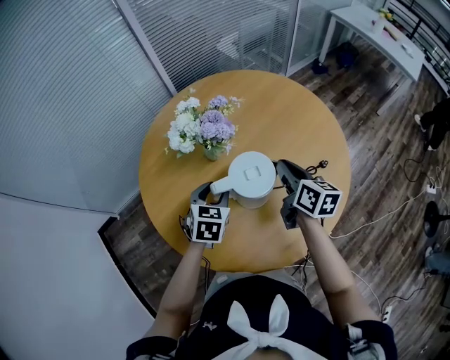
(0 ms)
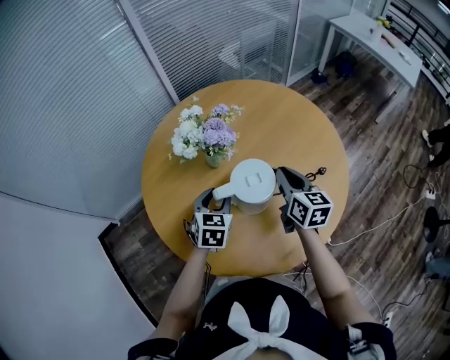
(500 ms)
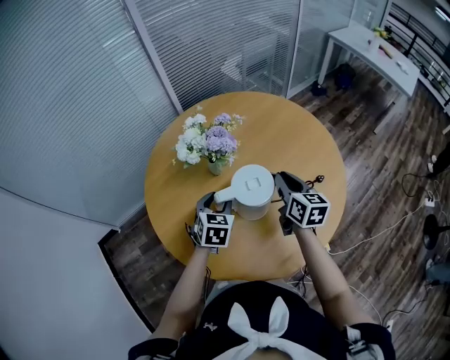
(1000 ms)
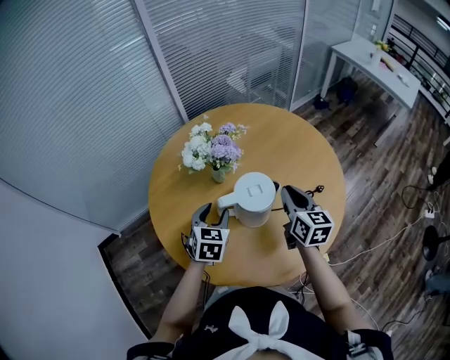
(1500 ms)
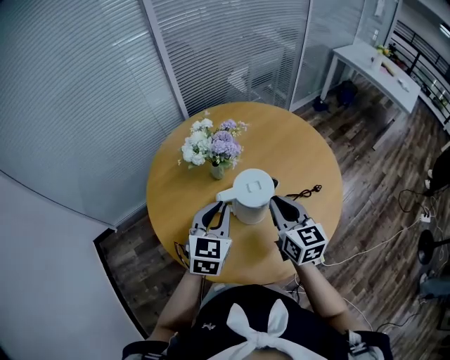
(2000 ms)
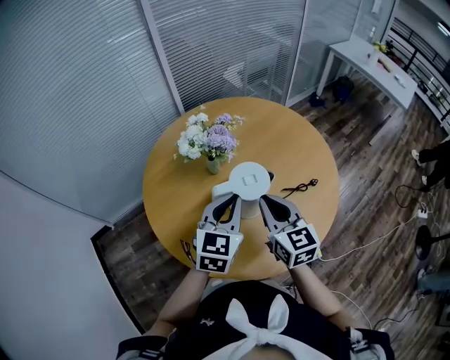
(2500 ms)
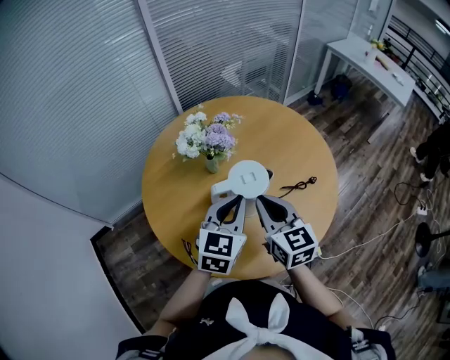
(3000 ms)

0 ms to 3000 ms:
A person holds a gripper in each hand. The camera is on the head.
0 ms to 1500 ms: The grippers move only a little.
1500 ms to 3000 ms: The left gripper moves upward, to the right and backward, about 15 cm, rotates roughly 20 degrees, and closes. The right gripper moves to the left, backward and upward, about 15 cm.

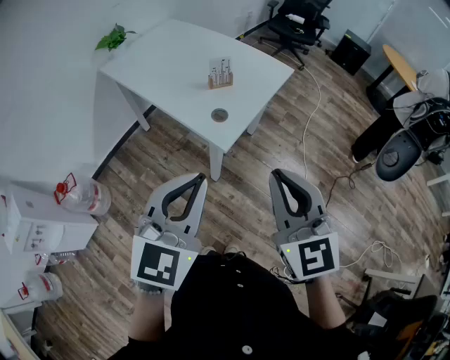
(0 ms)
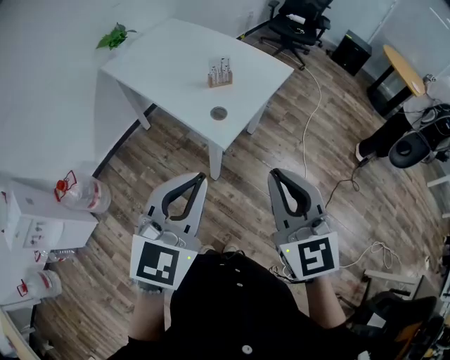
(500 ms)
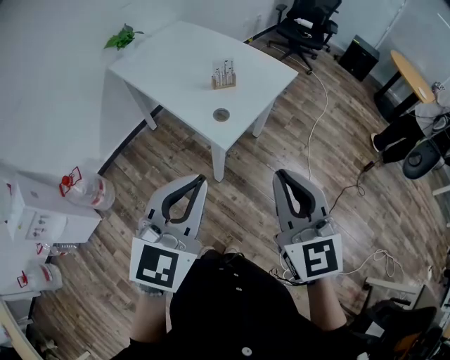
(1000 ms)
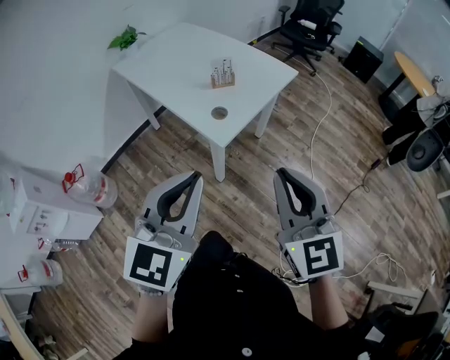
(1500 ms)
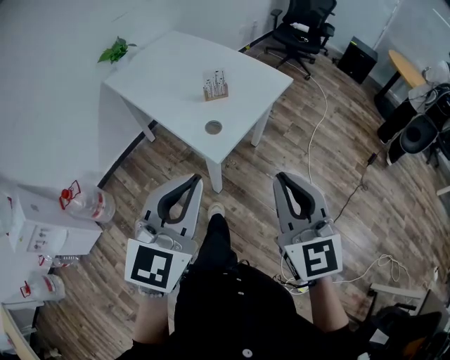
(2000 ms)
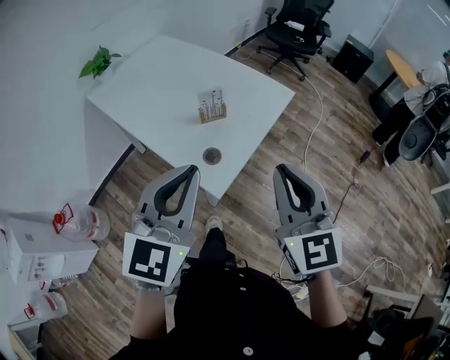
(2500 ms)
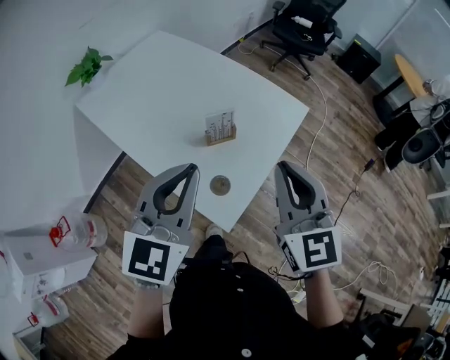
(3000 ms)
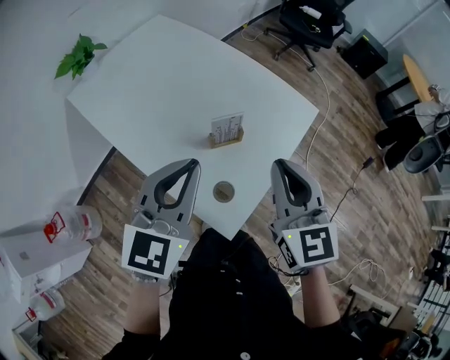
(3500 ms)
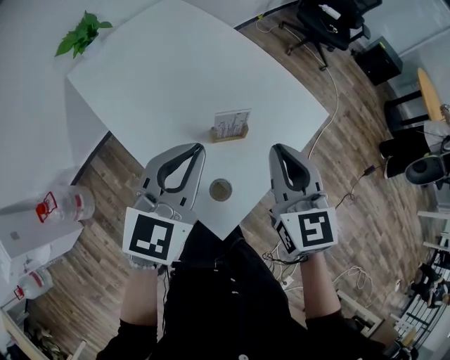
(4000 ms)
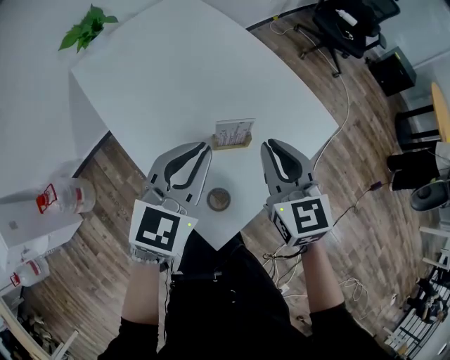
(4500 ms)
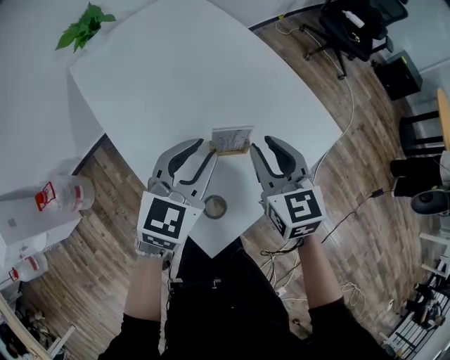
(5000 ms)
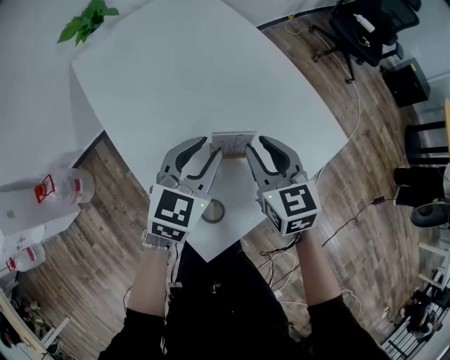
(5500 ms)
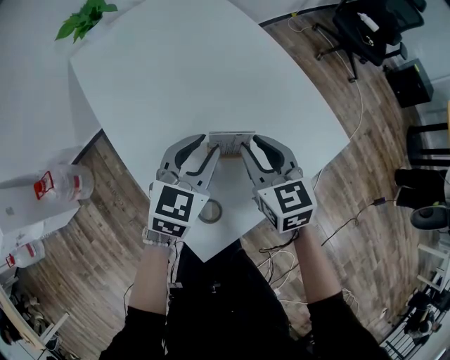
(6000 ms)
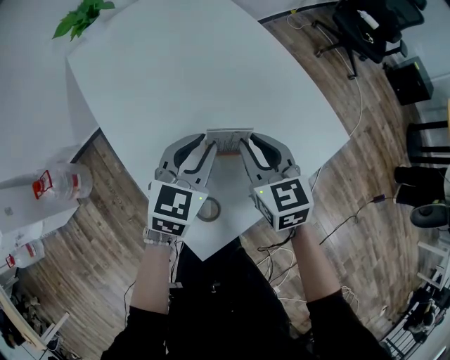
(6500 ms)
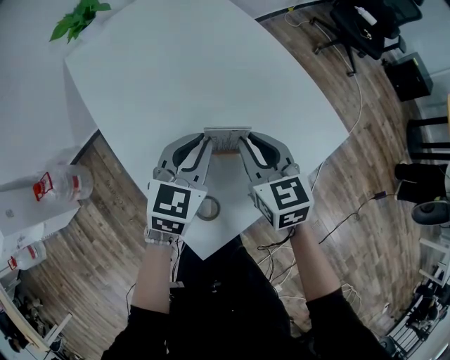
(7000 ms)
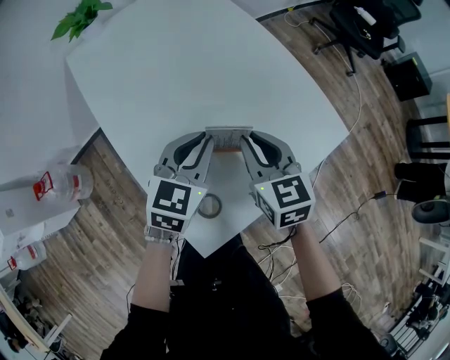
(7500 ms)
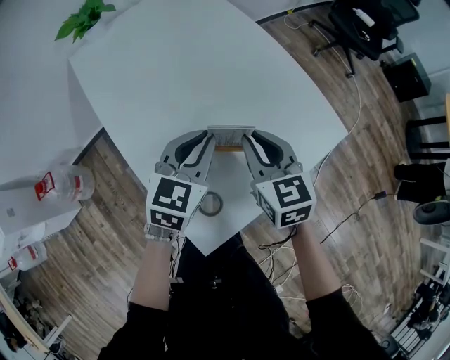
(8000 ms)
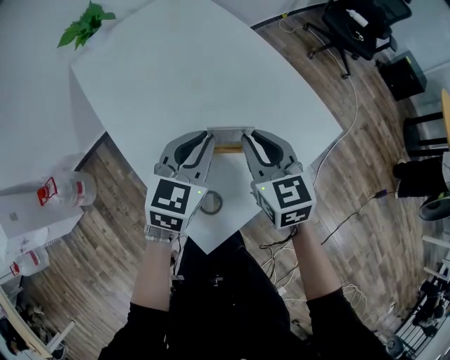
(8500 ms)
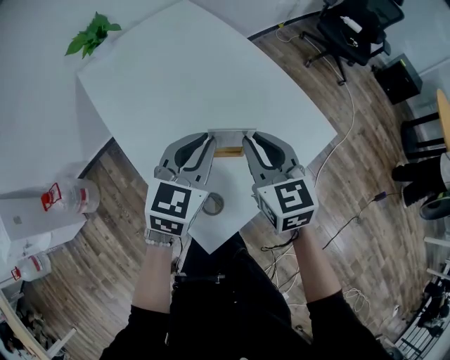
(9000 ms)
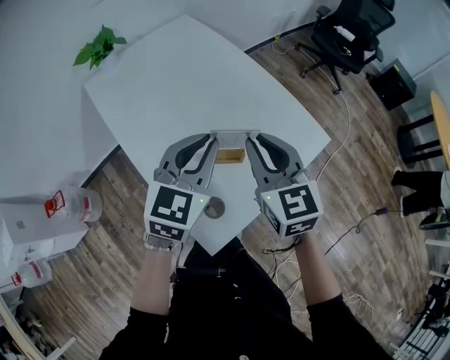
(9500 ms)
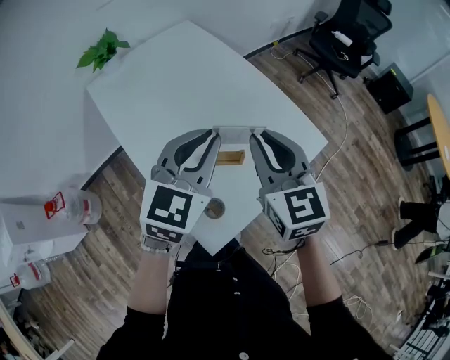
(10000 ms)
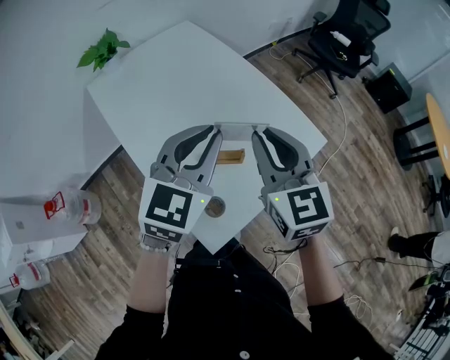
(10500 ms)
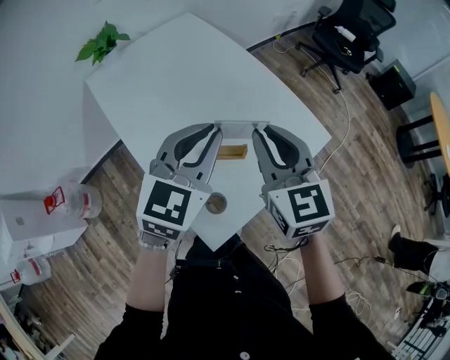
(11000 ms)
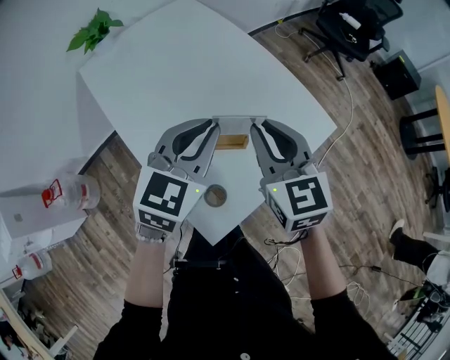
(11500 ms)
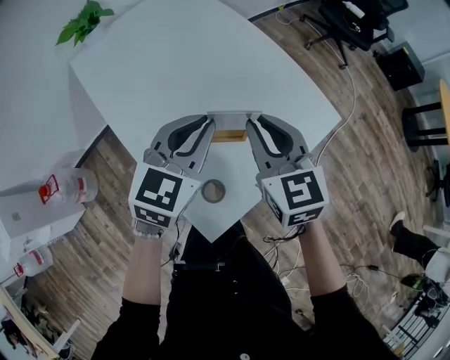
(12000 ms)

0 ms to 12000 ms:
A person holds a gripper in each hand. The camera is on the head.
0 ms to 2000 ms: The left gripper shifts by about 5 cm. The right gripper is displaced to the right by approximately 5 cm.
2000 ms to 4000 ms: The pair of grippers is taken forward, about 40 cm.
4000 ms to 6000 ms: Both grippers travel together downward and forward, some 20 cm. The left gripper opens. The right gripper changes its angle by roughly 20 degrees, and opens.
6000 ms to 8000 ms: The two grippers keep their place.
8000 ms to 10000 ms: Both grippers move upward, roughly 15 cm.
10000 ms to 12000 ms: Both grippers travel together downward, about 10 cm.

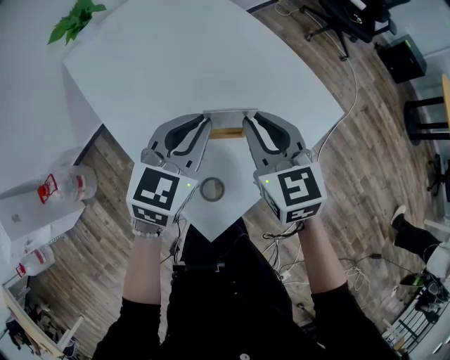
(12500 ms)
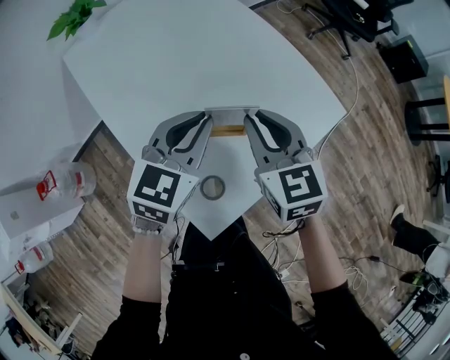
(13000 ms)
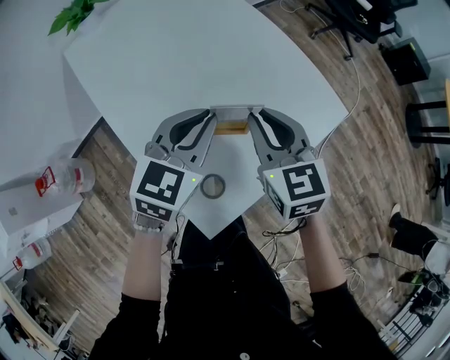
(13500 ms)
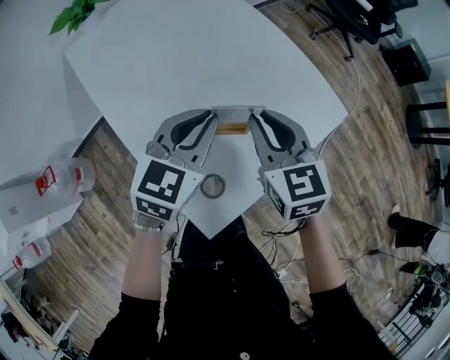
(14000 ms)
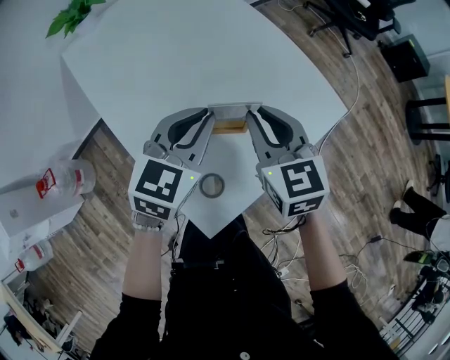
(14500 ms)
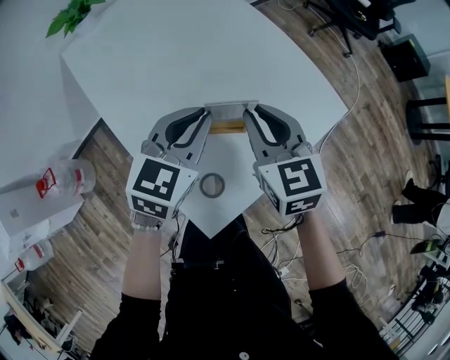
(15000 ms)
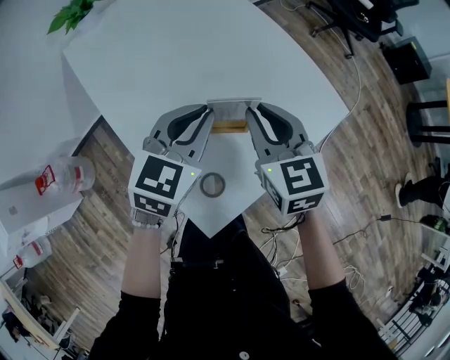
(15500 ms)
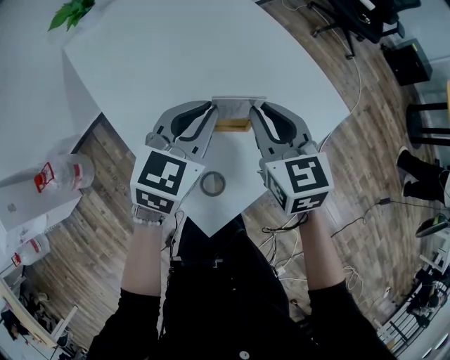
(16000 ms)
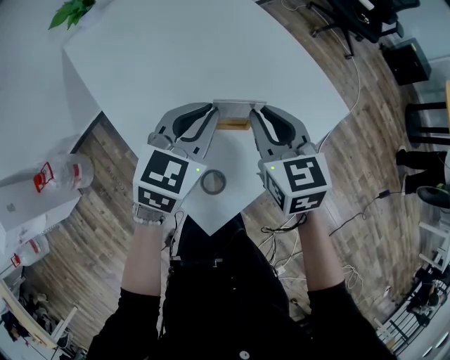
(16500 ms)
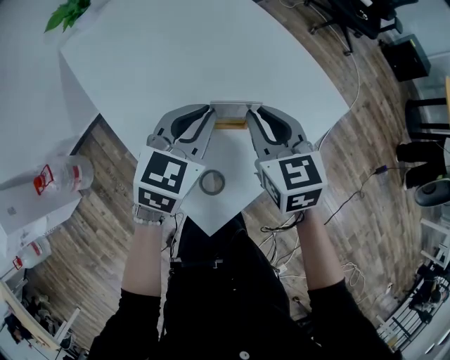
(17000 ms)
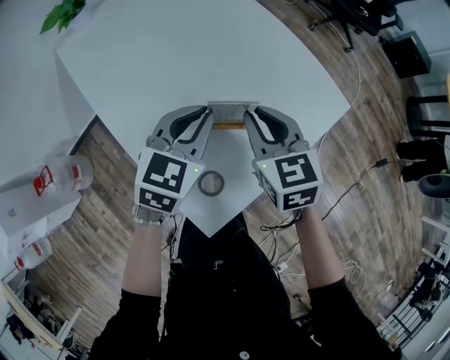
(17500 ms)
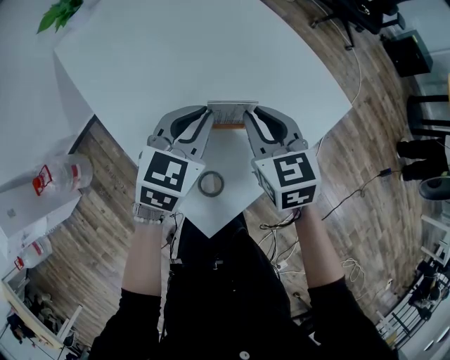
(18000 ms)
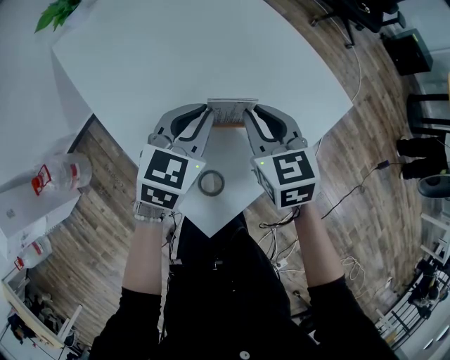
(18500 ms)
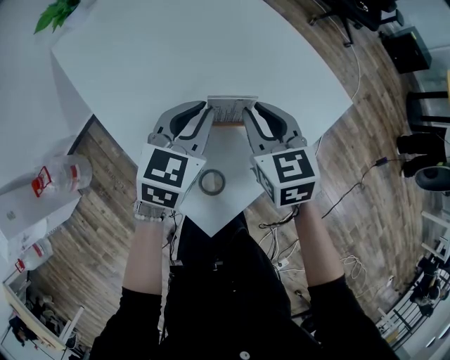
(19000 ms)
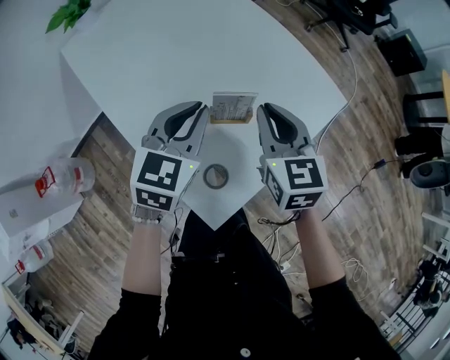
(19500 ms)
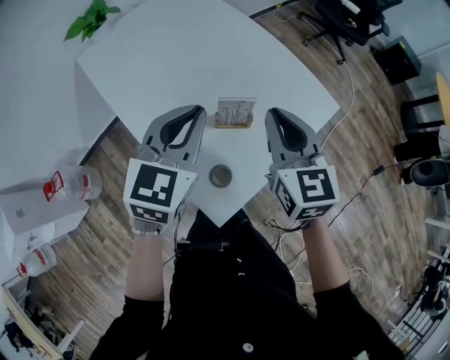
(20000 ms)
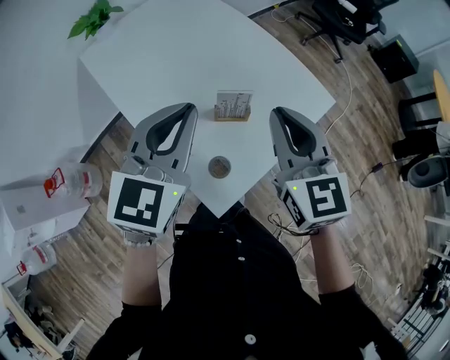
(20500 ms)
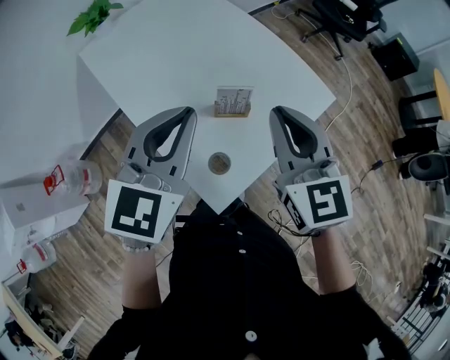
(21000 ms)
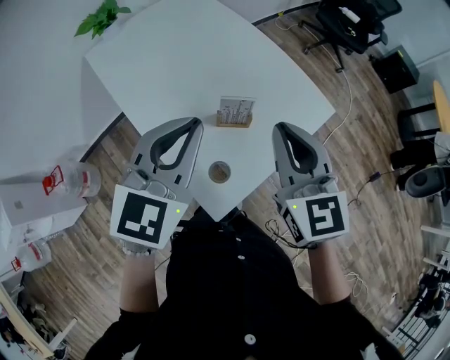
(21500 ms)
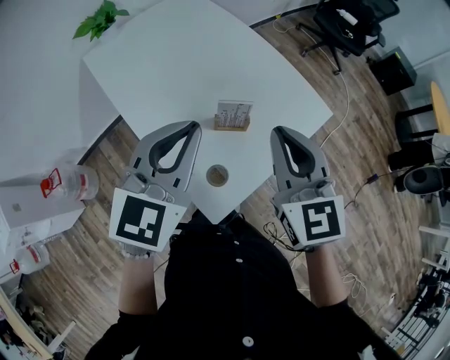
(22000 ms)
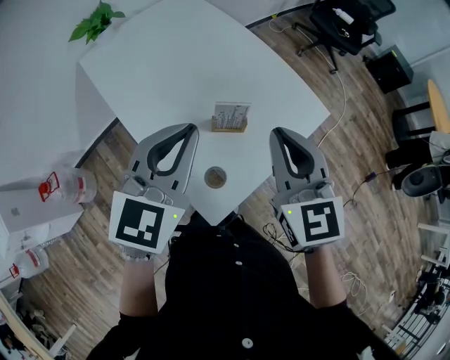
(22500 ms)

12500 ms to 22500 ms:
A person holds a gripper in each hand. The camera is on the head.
12500 ms to 14500 ms: There are only small adjustments of the grippers.
14500 ms to 16500 ms: Both grippers stay about where they are.
16500 ms to 18500 ms: The grippers both shift downward by about 5 cm.
18500 ms to 20500 ms: Both grippers travel together upward and backward, about 20 cm. The right gripper changes its angle by approximately 20 degrees.
20500 ms to 22500 ms: The grippers stay close to where they were, moving slightly.

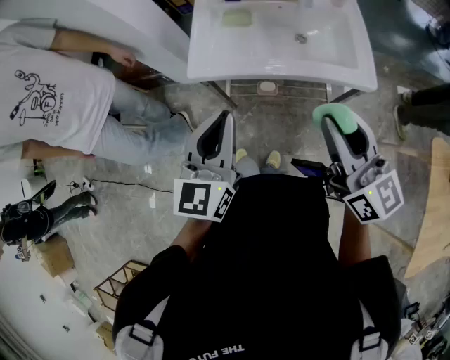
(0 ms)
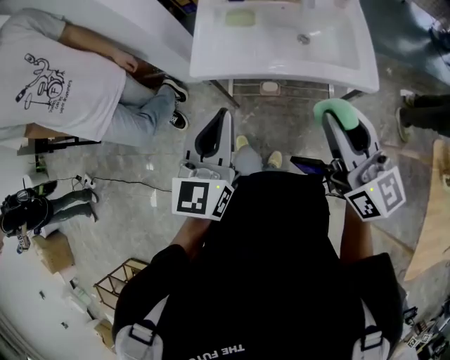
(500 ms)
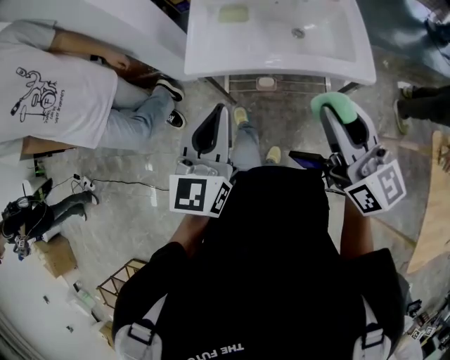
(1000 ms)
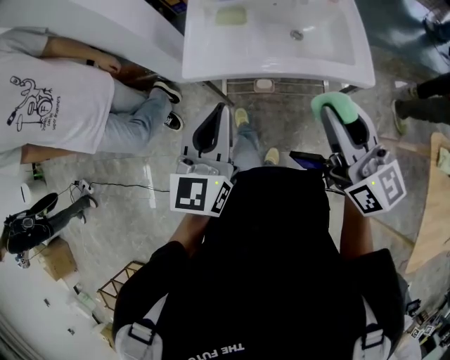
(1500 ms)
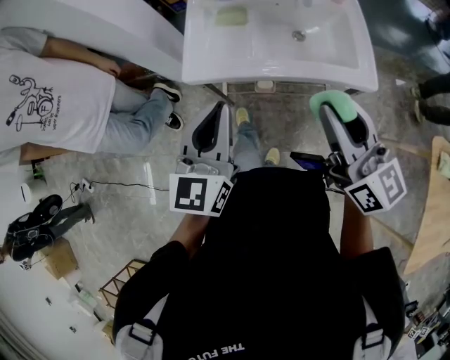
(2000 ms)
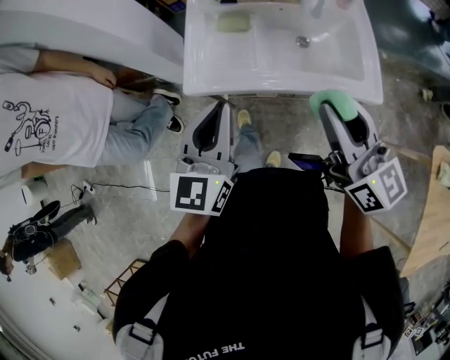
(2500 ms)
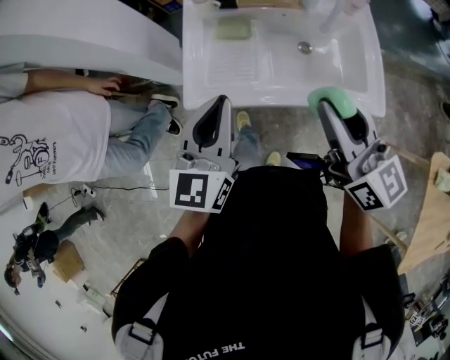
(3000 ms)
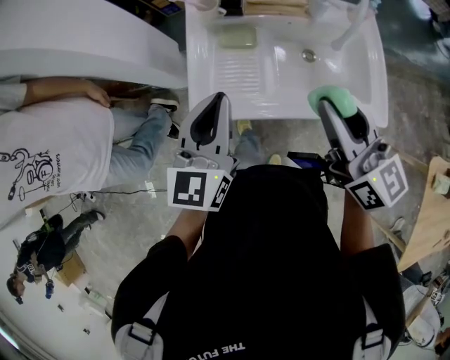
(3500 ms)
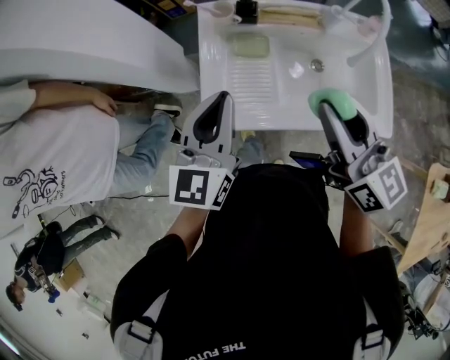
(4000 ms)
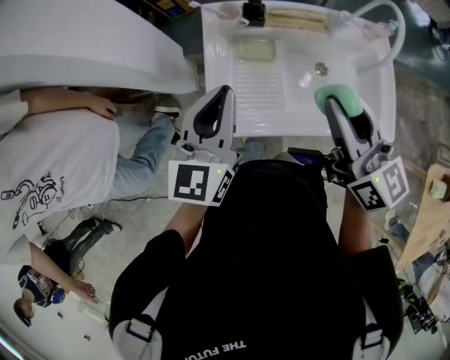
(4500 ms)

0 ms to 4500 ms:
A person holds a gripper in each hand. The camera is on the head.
0 ms to 2000 ms: There are only small adjustments of the grippers.
2000 ms to 4500 ms: Both grippers travel together forward and to the left, some 20 cm.
